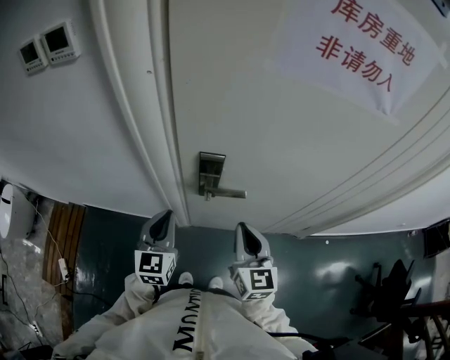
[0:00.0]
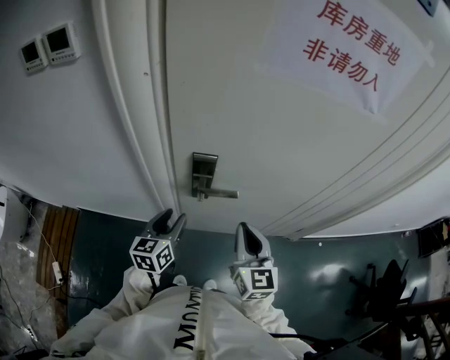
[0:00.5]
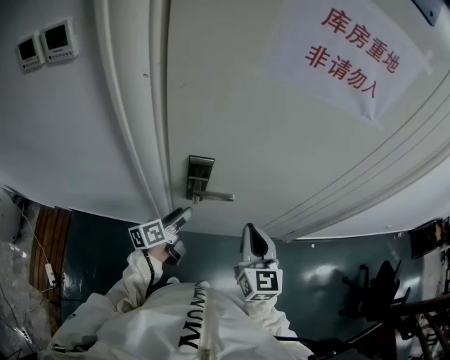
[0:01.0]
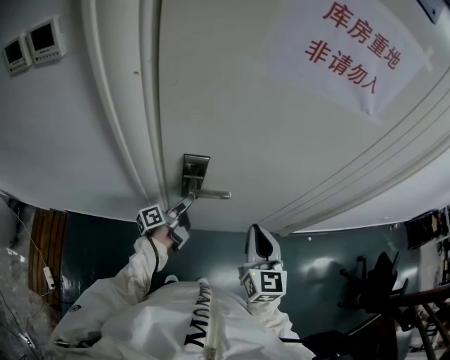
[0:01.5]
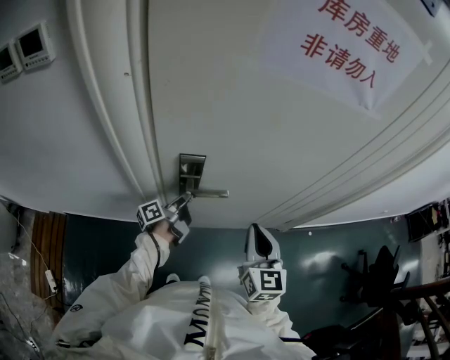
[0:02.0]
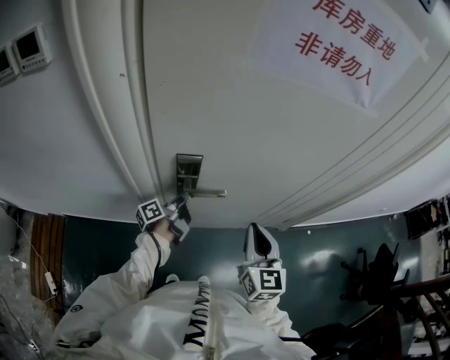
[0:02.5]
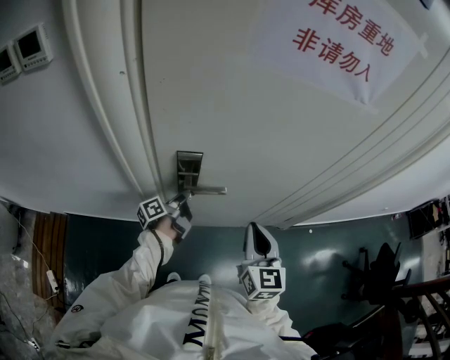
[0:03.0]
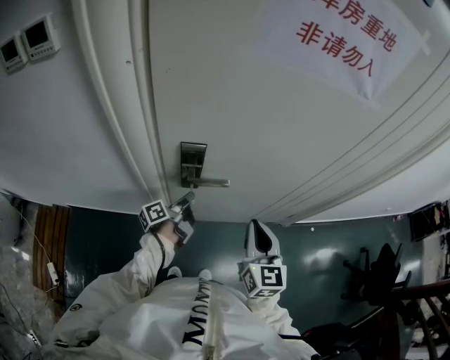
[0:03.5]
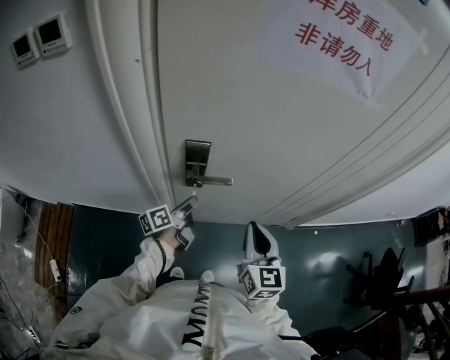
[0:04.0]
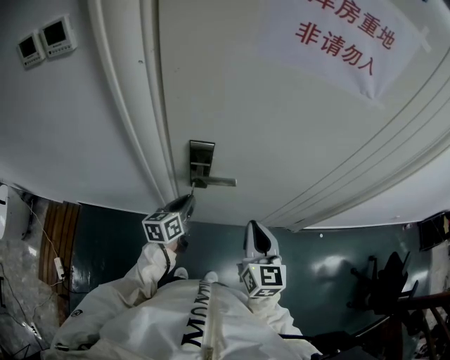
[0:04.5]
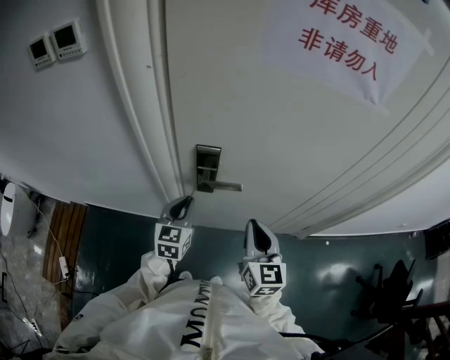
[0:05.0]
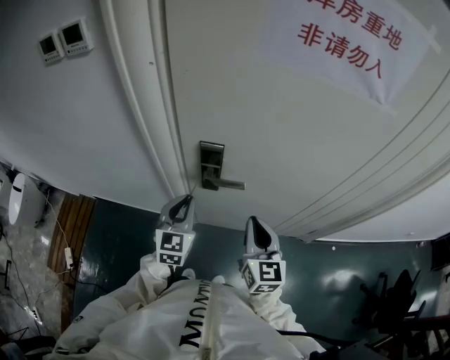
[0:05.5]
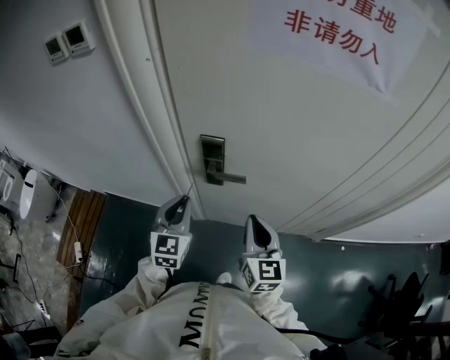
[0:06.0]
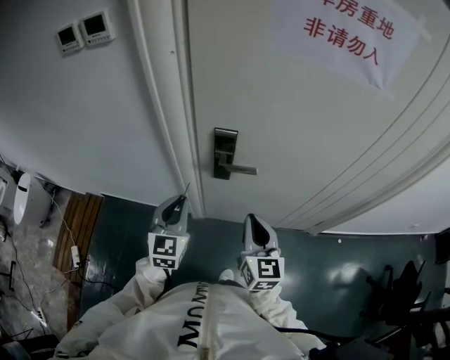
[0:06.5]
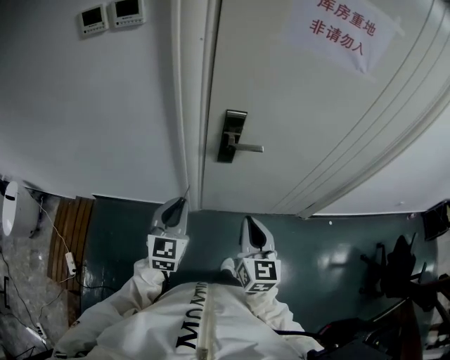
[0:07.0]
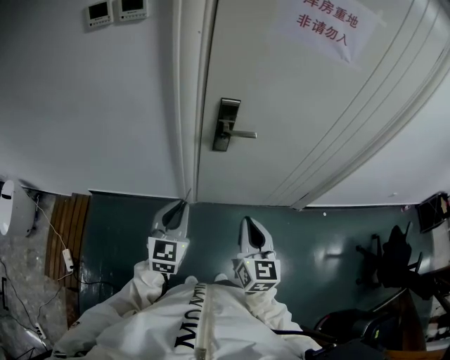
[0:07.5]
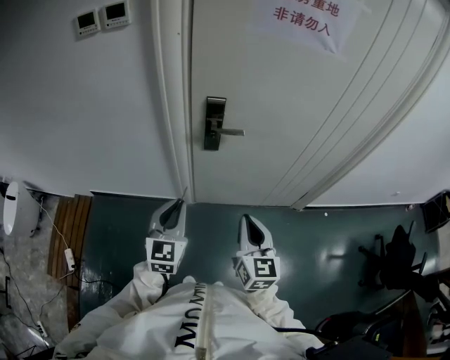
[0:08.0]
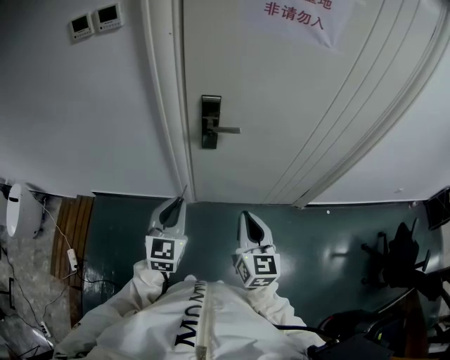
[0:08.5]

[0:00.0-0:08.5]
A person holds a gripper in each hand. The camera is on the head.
0:00.0 to 0:02.0: The left gripper moves downward, forward and to the right, about 20 cm, rotates around the line of its fingers by some 80 degrees, counterclockwise from behind, and opens up; the right gripper goes approximately 5 cm to the right.
0:02.0 to 0:04.0: The left gripper heads backward, covering about 5 cm, and closes its fingers.
0:04.0 to 0:06.5: The left gripper is displaced upward, backward and to the left by approximately 20 cm, and rotates around the line of its fingers by about 70 degrees, clockwise from behind. Meanwhile the right gripper shifts some 5 cm to the left.
0:06.5 to 0:08.5: The grippers both shift backward by roughly 15 cm.

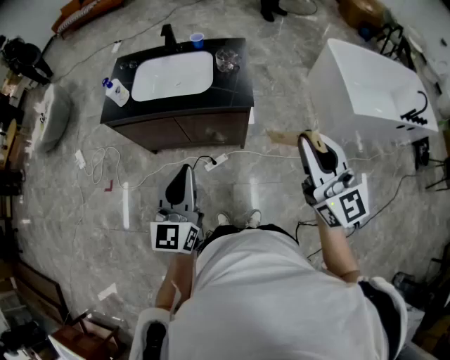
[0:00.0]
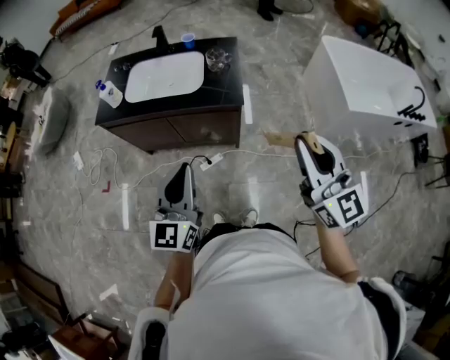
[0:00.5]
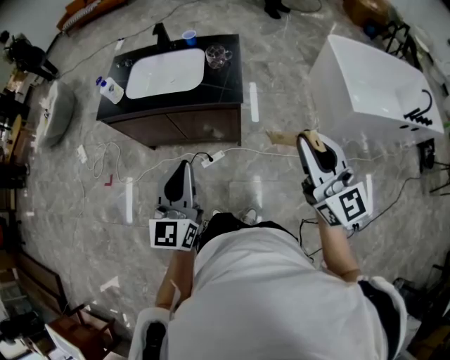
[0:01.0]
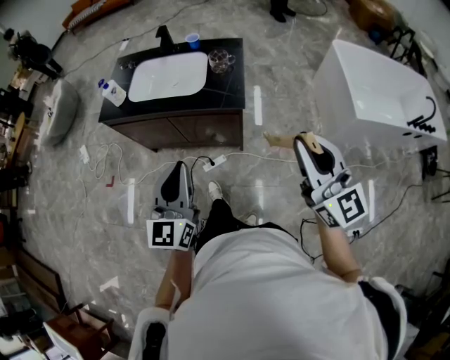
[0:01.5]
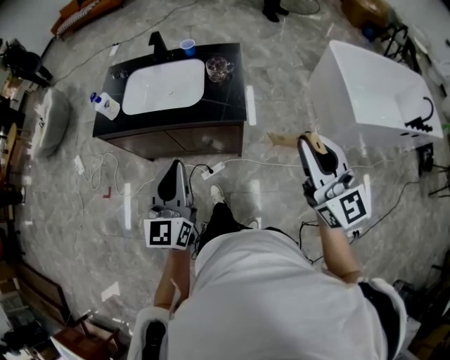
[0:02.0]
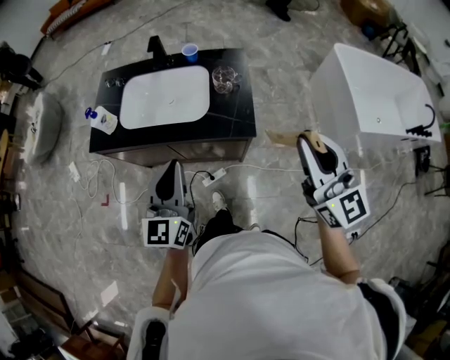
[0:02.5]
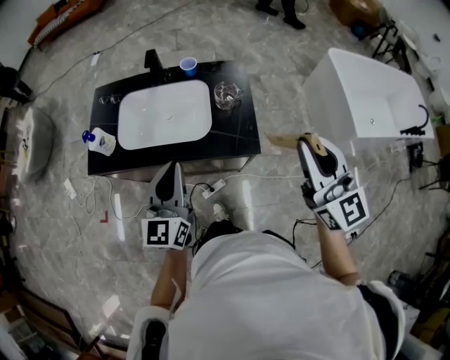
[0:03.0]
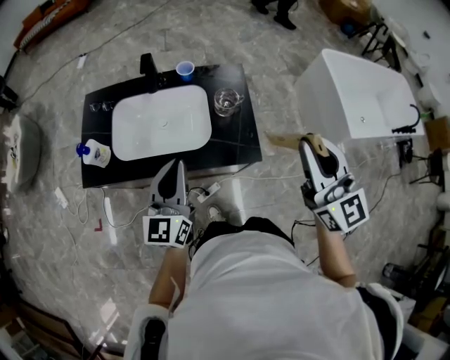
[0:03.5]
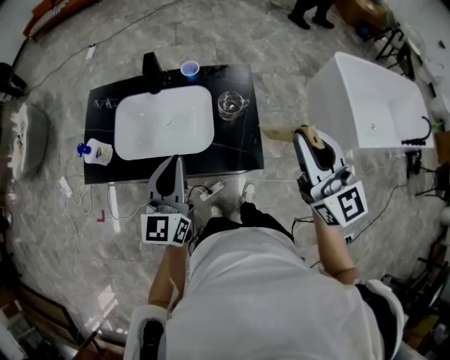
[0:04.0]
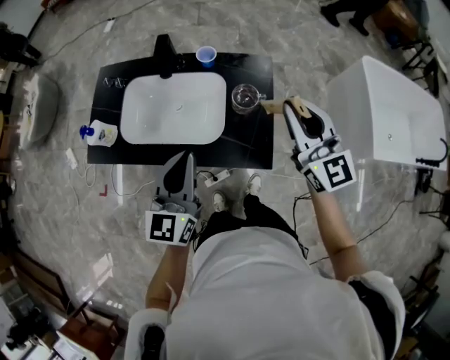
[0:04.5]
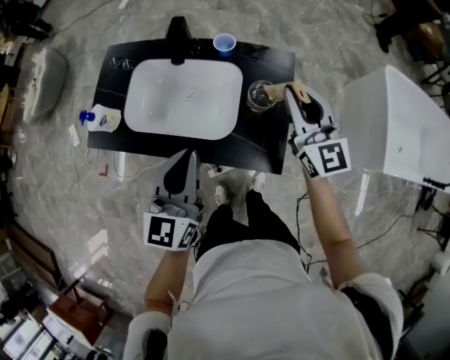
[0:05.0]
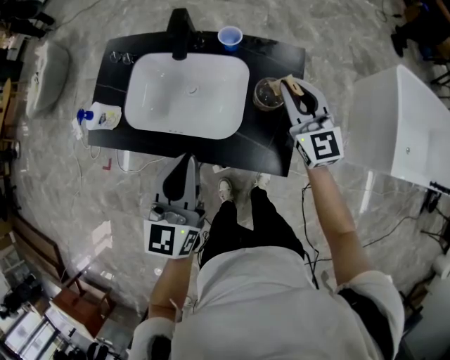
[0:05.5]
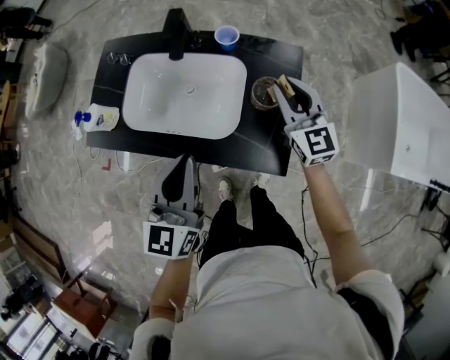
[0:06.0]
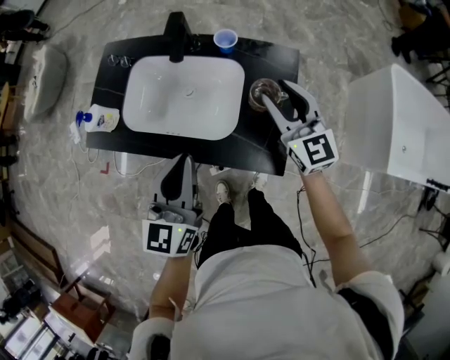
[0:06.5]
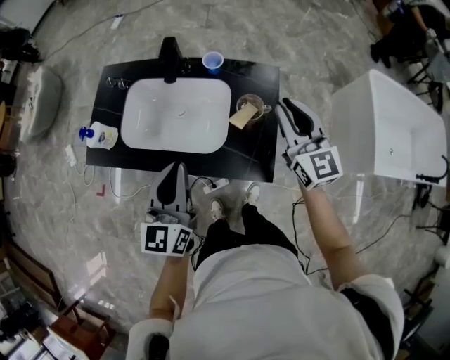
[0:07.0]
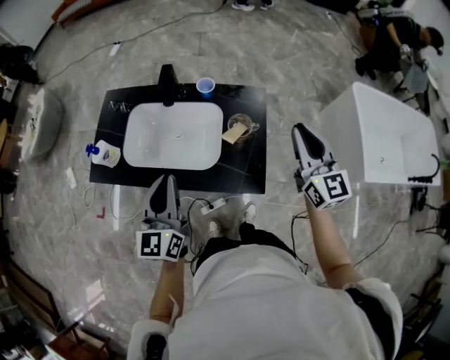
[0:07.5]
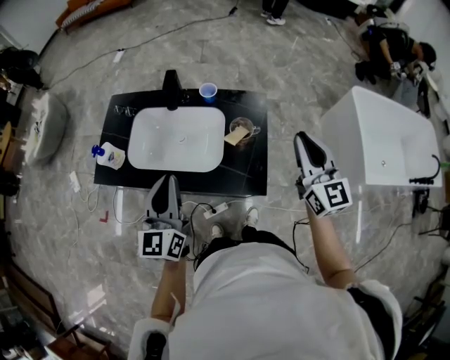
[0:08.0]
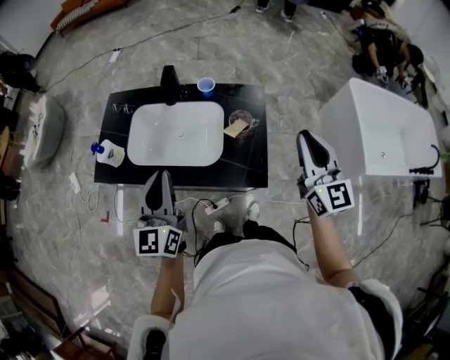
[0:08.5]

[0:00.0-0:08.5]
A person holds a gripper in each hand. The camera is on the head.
0:00.0 to 0:02.0: The right gripper travels forward and to the right by approximately 10 cm, while the left gripper is displaced forward by some 10 cm.
0:02.0 to 0:04.0: Both grippers travel together forward, some 25 cm.
0:04.0 to 0:06.5: The right gripper is displaced forward and downward by roughly 25 cm, and opens.
0:06.5 to 0:08.5: The right gripper is displaced backward, upward and to the right by roughly 20 cm, changes its angle by some 20 degrees, and closes its fingers. The left gripper is displaced upward and to the left by approximately 5 cm.

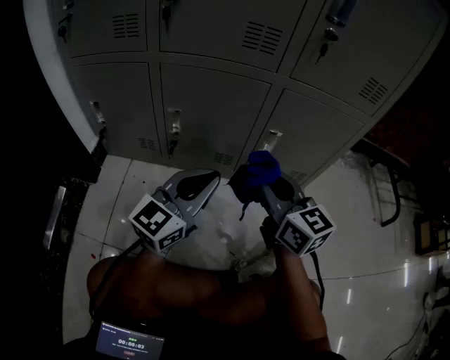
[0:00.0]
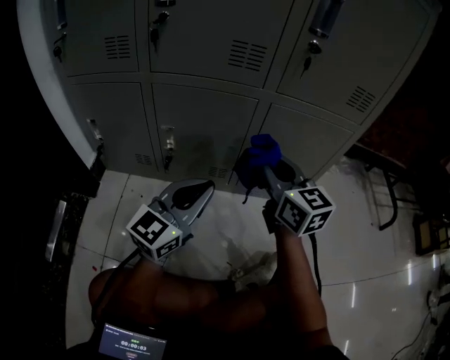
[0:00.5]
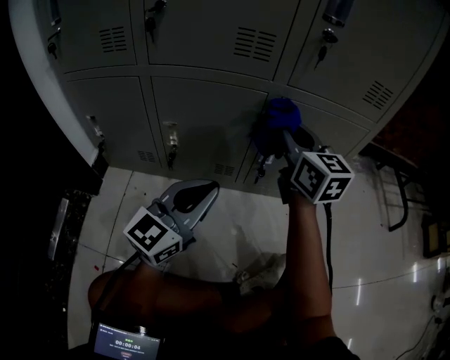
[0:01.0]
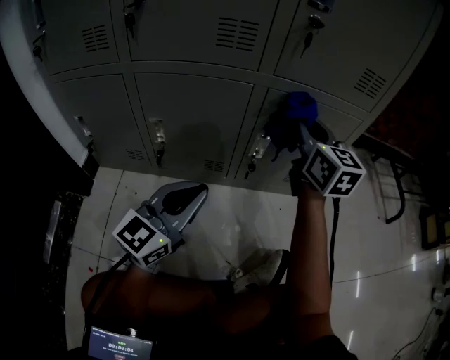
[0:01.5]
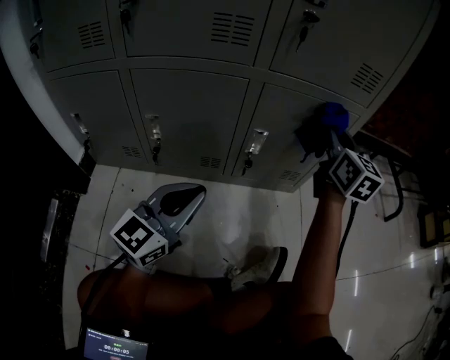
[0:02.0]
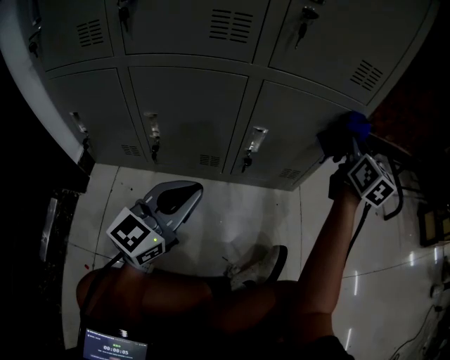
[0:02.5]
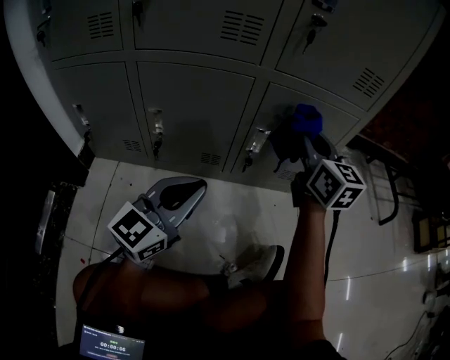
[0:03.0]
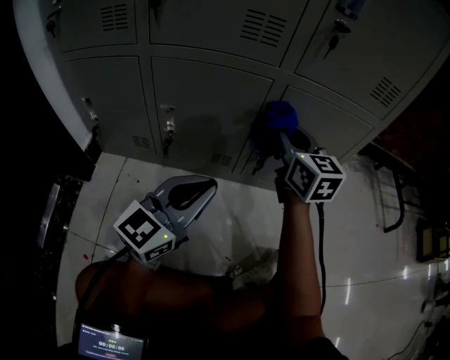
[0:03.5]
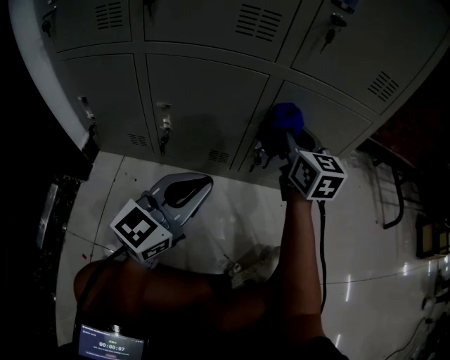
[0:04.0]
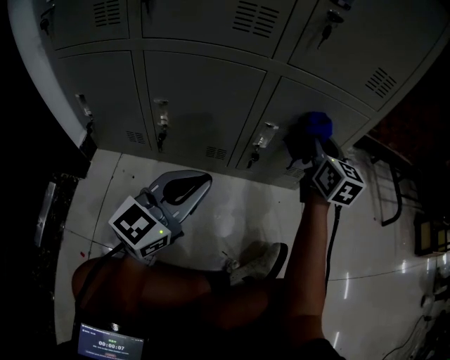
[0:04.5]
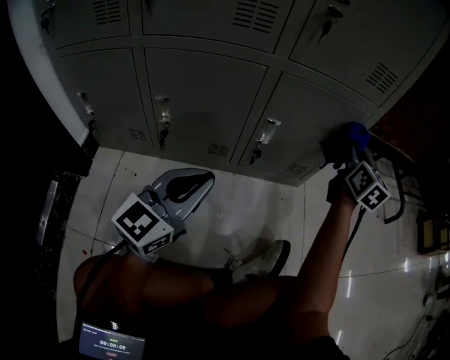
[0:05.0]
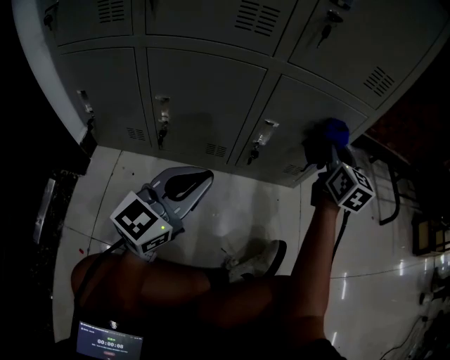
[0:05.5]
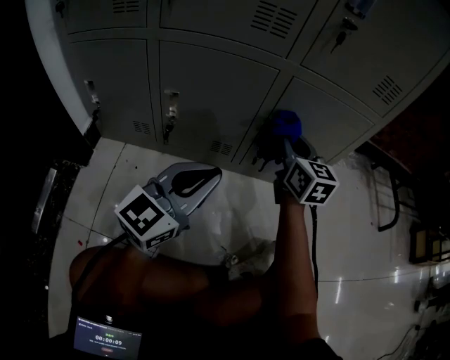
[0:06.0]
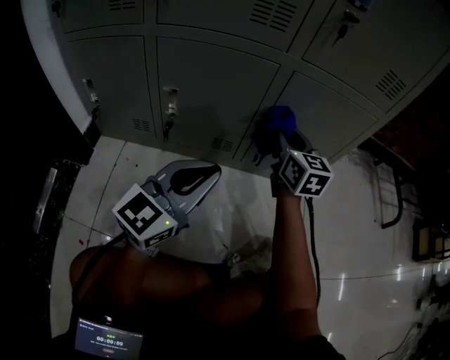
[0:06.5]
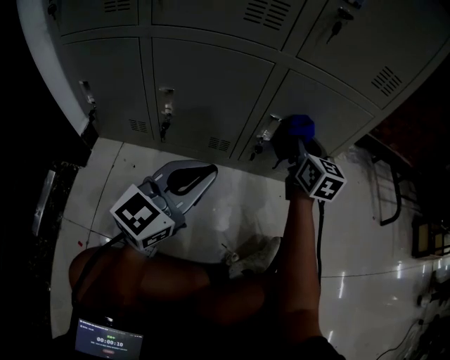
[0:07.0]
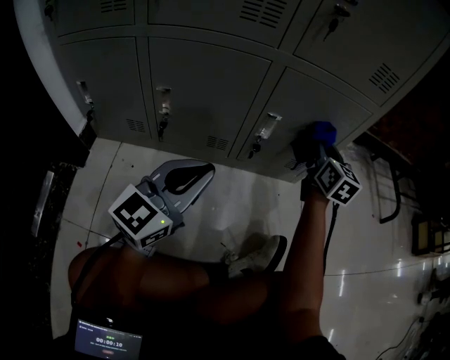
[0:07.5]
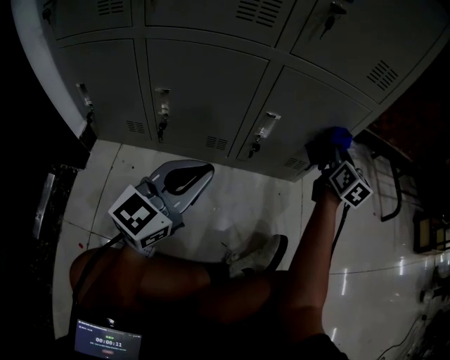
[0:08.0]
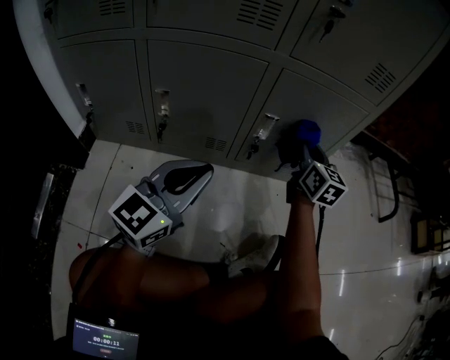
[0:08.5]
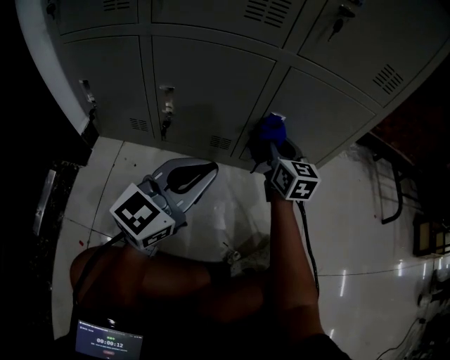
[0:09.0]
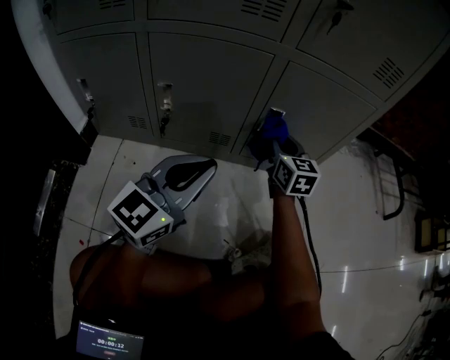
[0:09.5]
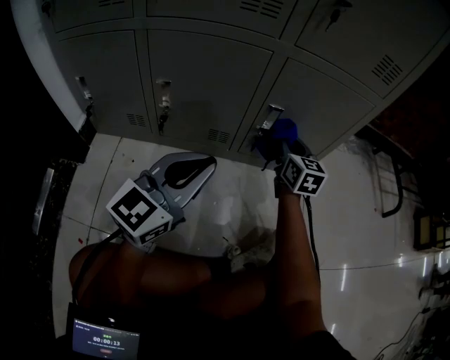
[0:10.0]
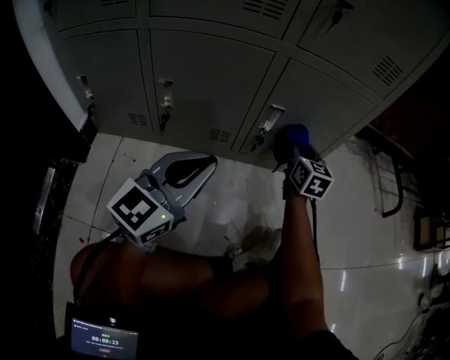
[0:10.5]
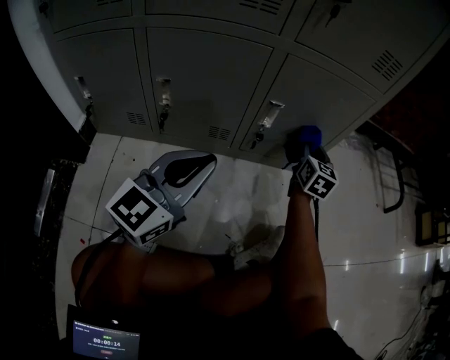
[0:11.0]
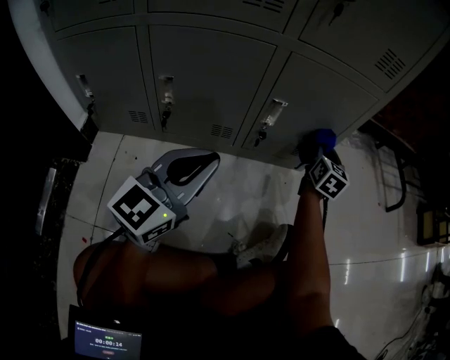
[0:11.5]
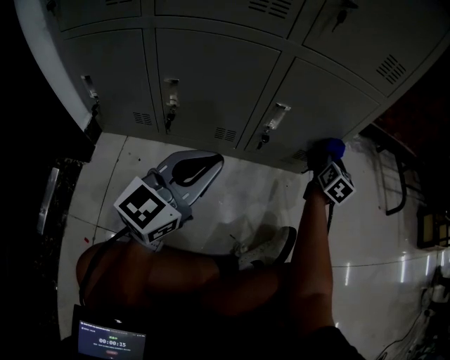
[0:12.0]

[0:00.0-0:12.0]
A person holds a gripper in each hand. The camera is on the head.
0:00.0 to 0:02.0: The right gripper travels to the right and forward by about 25 cm, and rotates roughly 30 degrees.
0:02.0 to 0:04.0: The right gripper travels to the left and downward by some 15 cm.
0:04.0 to 0:06.0: The right gripper reaches approximately 20 cm to the right, then returns.
0:06.0 to 0:08.0: The right gripper travels to the right by roughly 20 cm, and changes its angle by roughly 20 degrees.
0:08.0 to 0:10.0: The right gripper moves to the left and downward, some 15 cm.
0:10.0 to 0:12.0: The right gripper shifts some 15 cm to the right, and changes its angle by approximately 30 degrees.
